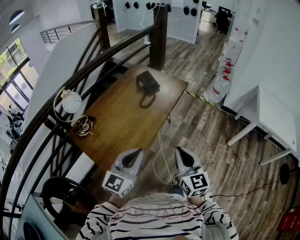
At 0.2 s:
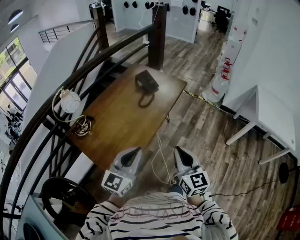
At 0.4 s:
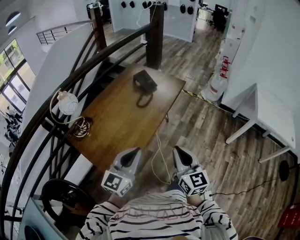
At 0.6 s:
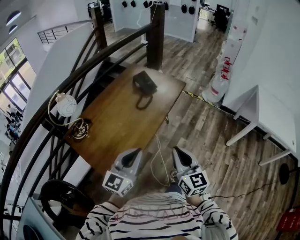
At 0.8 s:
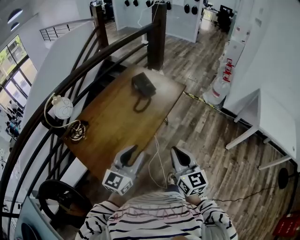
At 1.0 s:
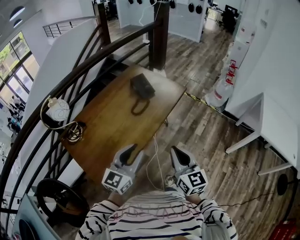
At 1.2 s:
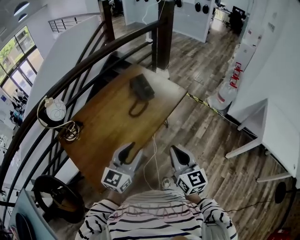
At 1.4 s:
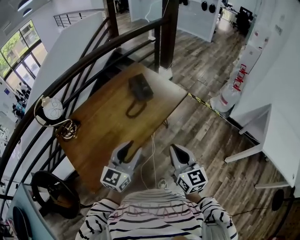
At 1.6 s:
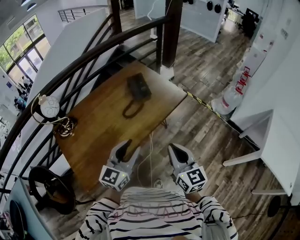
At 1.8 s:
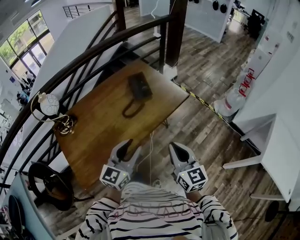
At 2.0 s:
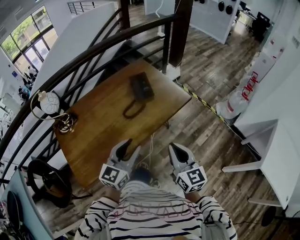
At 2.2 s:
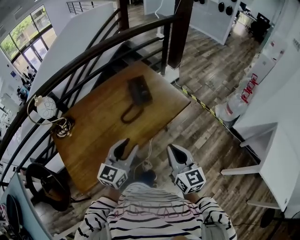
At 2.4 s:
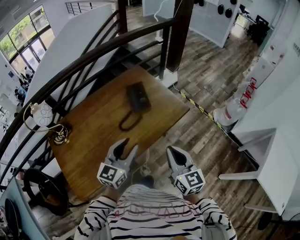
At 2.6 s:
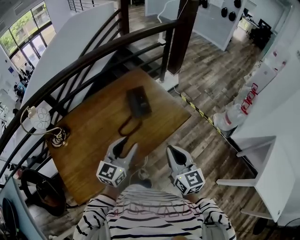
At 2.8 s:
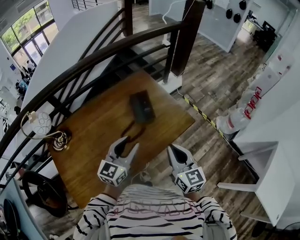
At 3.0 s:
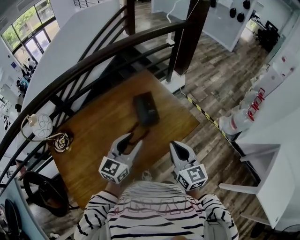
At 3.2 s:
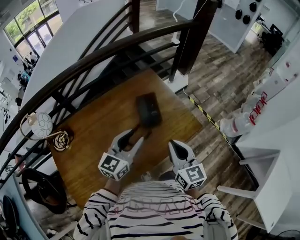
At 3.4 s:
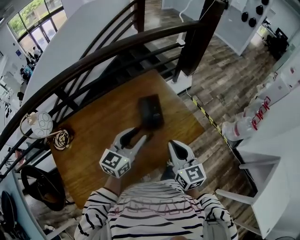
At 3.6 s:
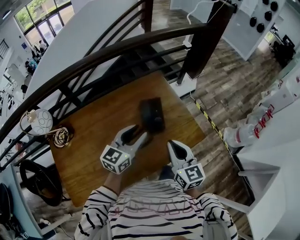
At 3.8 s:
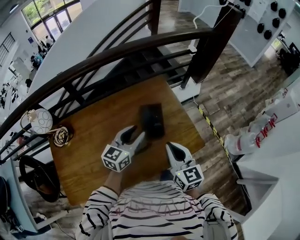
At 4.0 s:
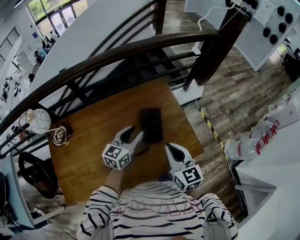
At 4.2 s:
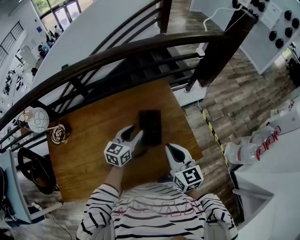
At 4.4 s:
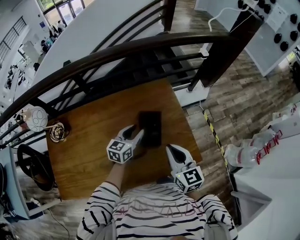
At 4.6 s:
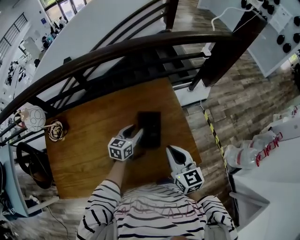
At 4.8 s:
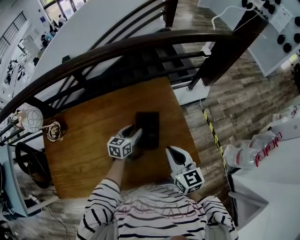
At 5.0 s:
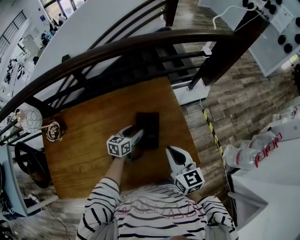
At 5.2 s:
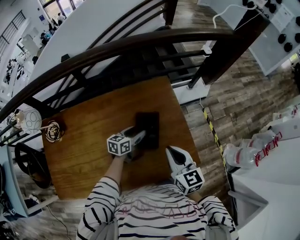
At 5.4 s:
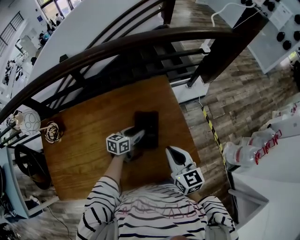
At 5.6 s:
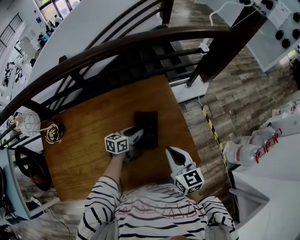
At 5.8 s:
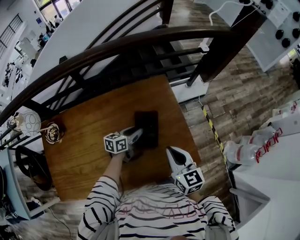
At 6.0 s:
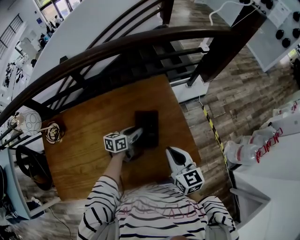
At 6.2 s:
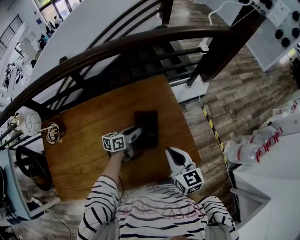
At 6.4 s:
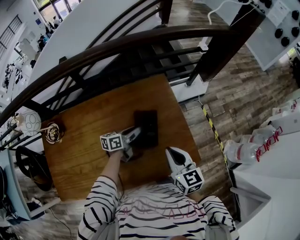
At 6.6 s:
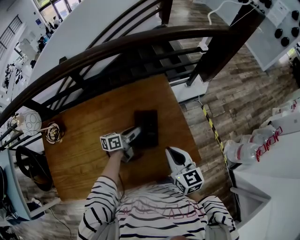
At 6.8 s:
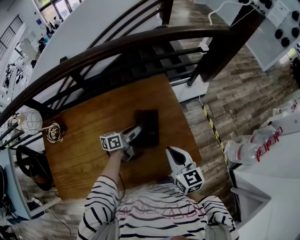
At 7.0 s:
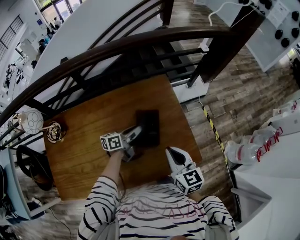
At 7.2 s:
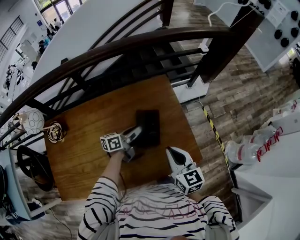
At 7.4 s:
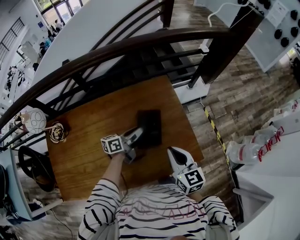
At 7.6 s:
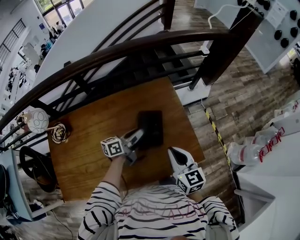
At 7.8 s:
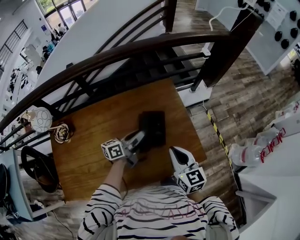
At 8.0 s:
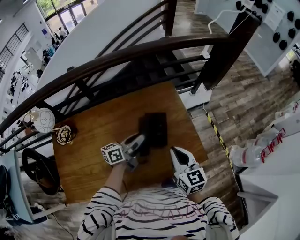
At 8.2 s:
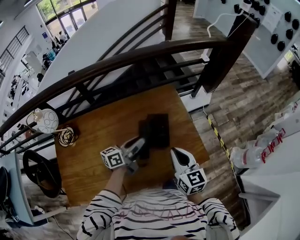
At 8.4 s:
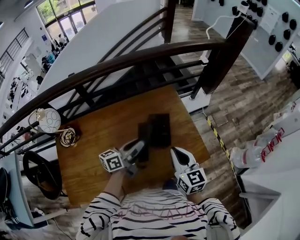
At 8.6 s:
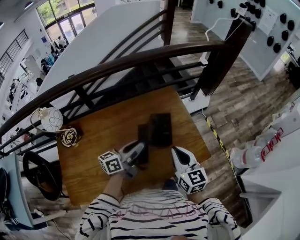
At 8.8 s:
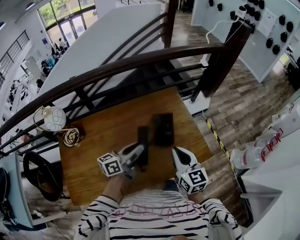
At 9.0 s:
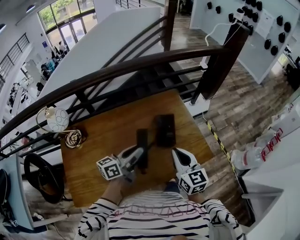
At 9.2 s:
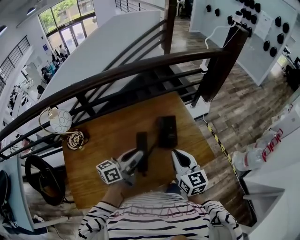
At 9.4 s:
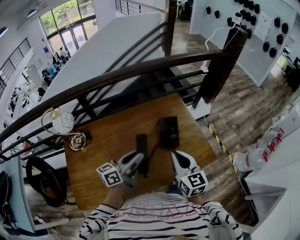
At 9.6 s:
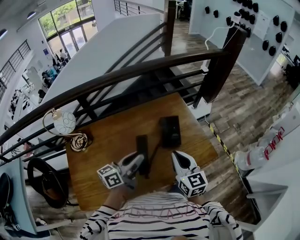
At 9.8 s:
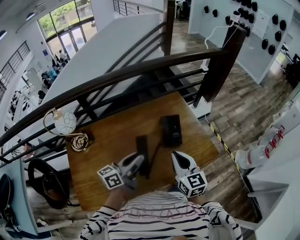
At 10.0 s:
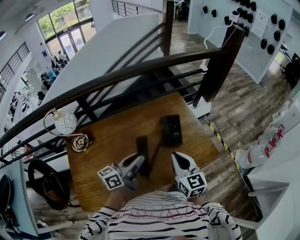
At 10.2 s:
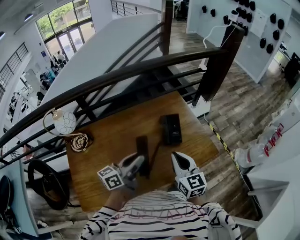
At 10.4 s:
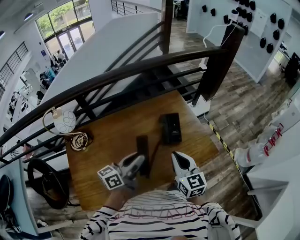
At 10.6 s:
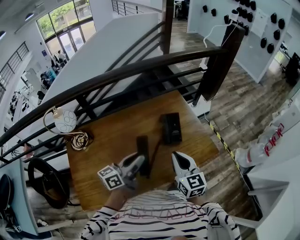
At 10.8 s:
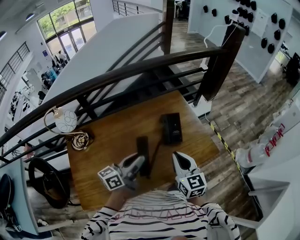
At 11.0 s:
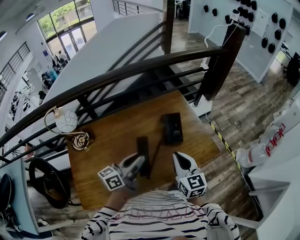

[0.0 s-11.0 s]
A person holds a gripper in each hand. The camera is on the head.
0.0 to 1.6 s: The grippers both shift forward and to the right by some 30 cm. The left gripper opens.
1.6 to 3.2 s: The two grippers go about 30 cm forward.
3.2 to 4.8 s: The right gripper goes about 20 cm forward, and turns by some 20 degrees. The left gripper is displaced forward and downward by about 30 cm, and rotates some 30 degrees.
4.8 to 6.2 s: The left gripper swivels approximately 20 degrees, and closes its fingers.
6.2 to 7.8 s: The left gripper shifts about 10 cm upward and backward.
7.8 to 9.4 s: The right gripper heads backward, to the left and upward, covering about 15 cm. Meanwhile the left gripper moves backward, upward and to the left, approximately 25 cm.
9.4 to 11.0 s: The grippers make only small movements.

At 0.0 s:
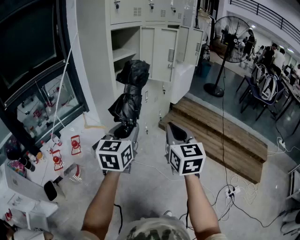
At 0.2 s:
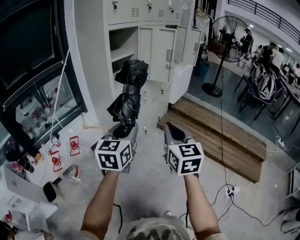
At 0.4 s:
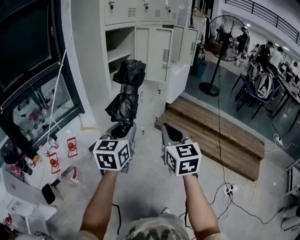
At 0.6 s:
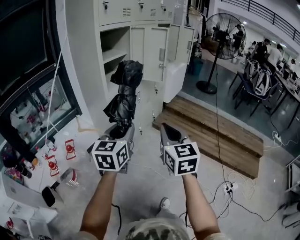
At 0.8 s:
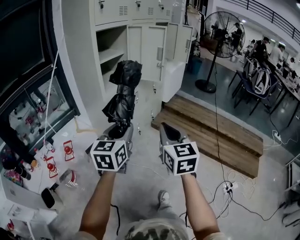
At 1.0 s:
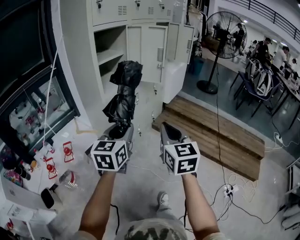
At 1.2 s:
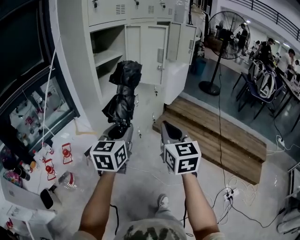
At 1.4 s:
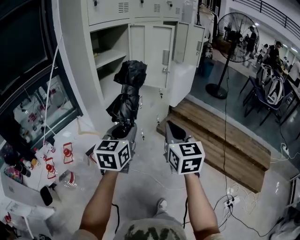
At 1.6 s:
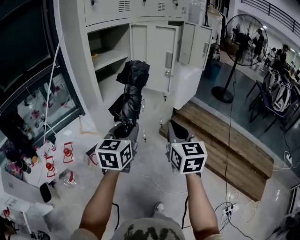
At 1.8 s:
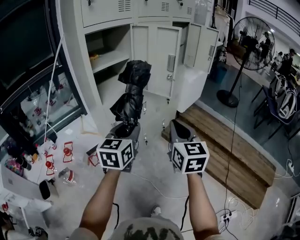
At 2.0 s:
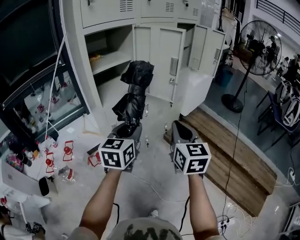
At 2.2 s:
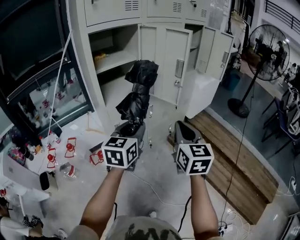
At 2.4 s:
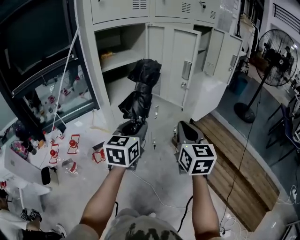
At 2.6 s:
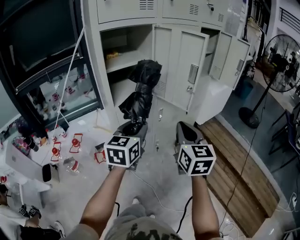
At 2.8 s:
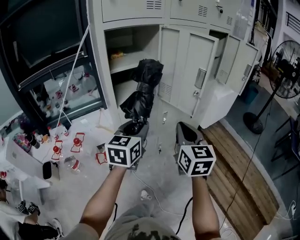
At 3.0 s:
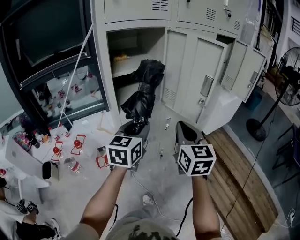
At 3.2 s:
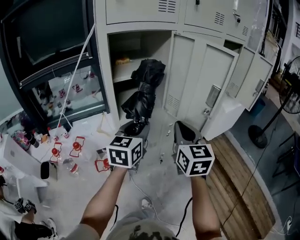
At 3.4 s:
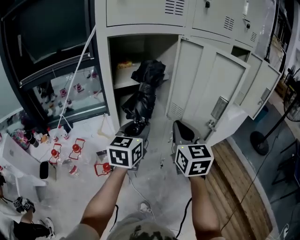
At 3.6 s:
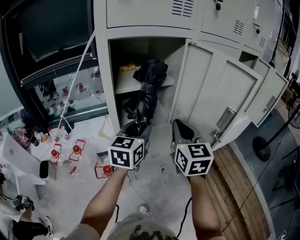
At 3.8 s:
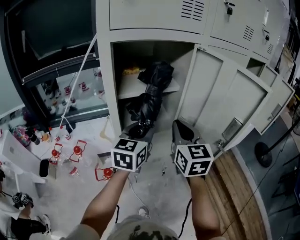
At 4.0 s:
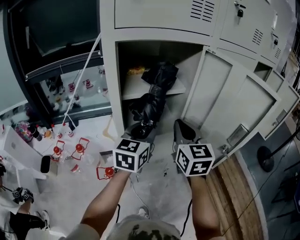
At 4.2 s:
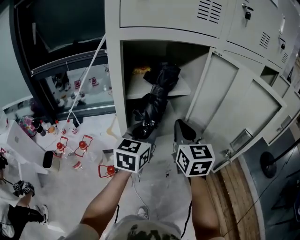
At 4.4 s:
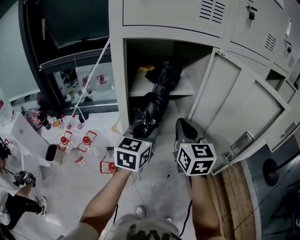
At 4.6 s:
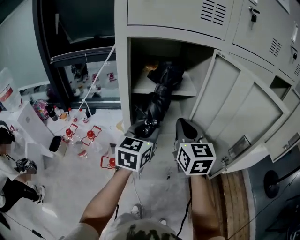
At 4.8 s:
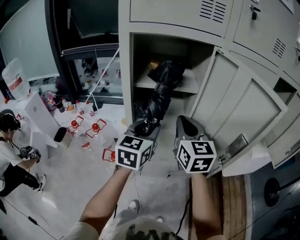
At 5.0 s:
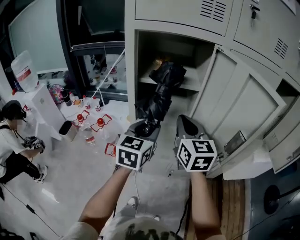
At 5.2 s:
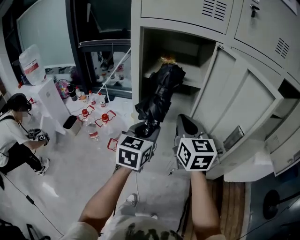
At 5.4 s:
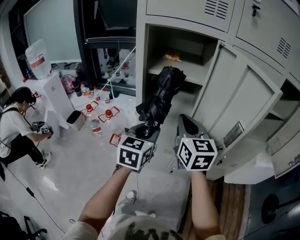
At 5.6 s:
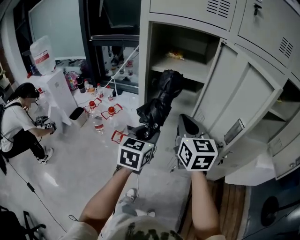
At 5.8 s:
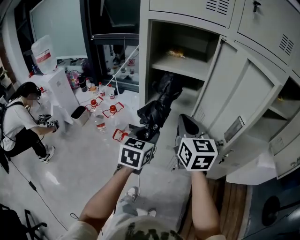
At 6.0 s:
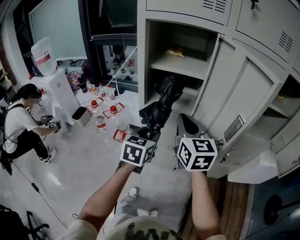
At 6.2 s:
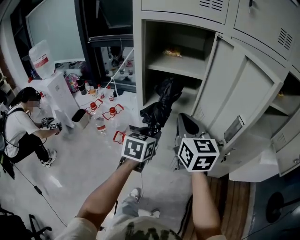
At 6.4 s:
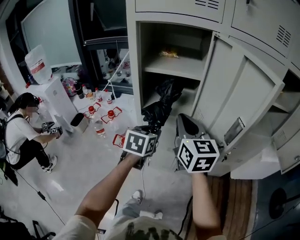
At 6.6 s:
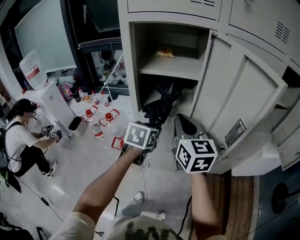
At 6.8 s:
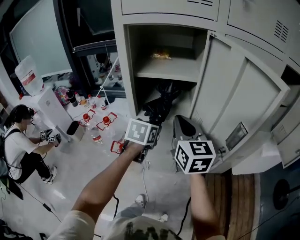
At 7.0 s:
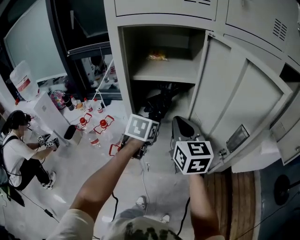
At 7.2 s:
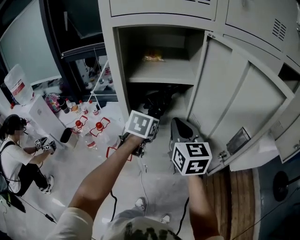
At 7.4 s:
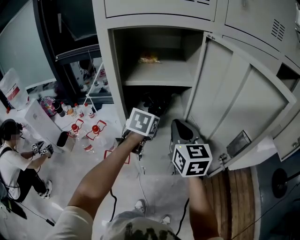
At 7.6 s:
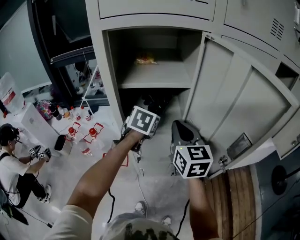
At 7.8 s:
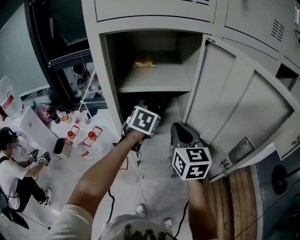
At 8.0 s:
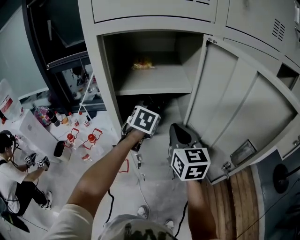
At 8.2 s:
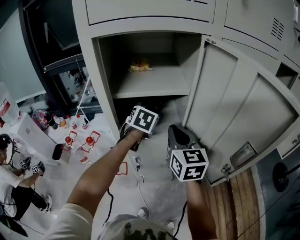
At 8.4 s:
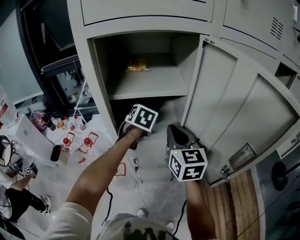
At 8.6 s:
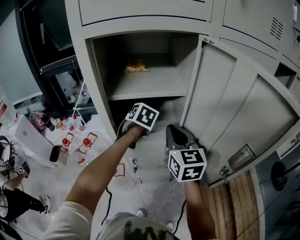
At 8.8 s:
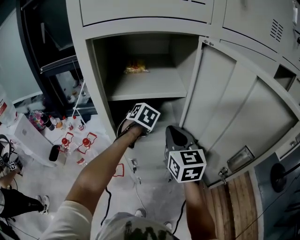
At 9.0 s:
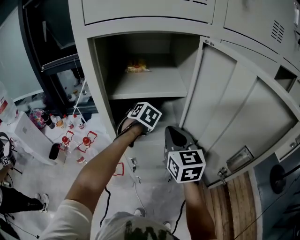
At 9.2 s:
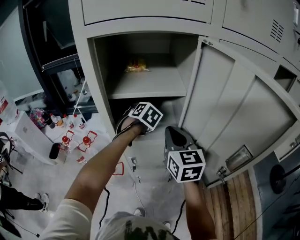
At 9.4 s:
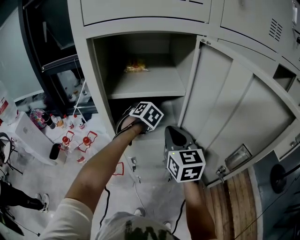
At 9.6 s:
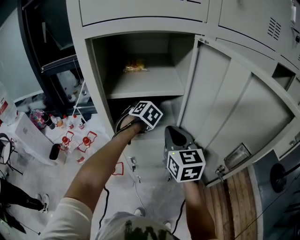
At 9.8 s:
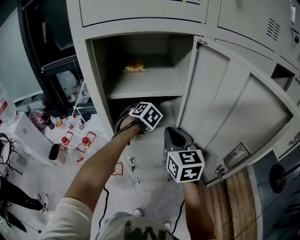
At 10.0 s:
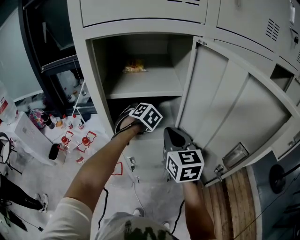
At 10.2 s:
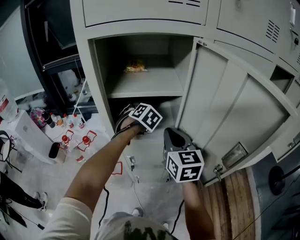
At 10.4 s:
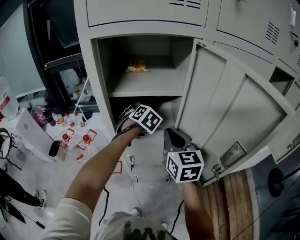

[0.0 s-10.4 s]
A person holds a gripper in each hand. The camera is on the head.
0.0 to 1.4 s: Both grippers travel together forward, some 15 cm.
1.4 to 3.0 s: The two grippers go some 25 cm forward. The right gripper changes its angle by approximately 20 degrees.
3.0 to 4.4 s: The right gripper travels forward and to the left by about 20 cm, while the left gripper shifts roughly 15 cm forward.
4.4 to 6.0 s: The left gripper travels backward and downward by roughly 15 cm, and changes its angle by about 30 degrees; the right gripper heads backward, covering about 10 cm, and swivels some 20 degrees.
6.0 to 7.4 s: The right gripper shifts some 5 cm forward, while the left gripper travels forward by roughly 15 cm, and turns by about 20 degrees.
7.4 to 9.0 s: The left gripper is displaced forward by some 10 cm, and changes its angle by about 30 degrees.
9.0 to 10.4 s: The left gripper opens.

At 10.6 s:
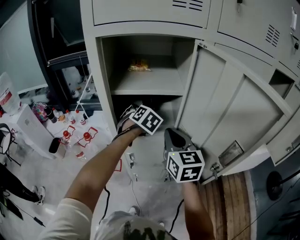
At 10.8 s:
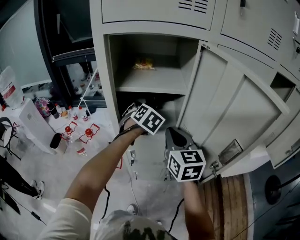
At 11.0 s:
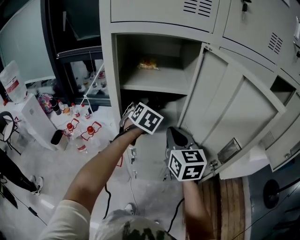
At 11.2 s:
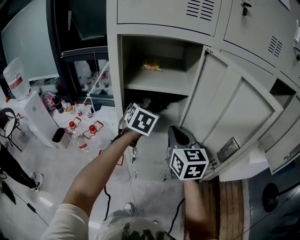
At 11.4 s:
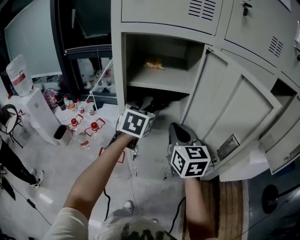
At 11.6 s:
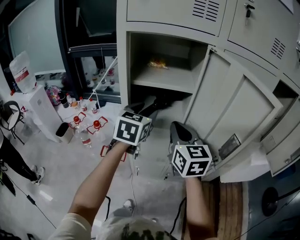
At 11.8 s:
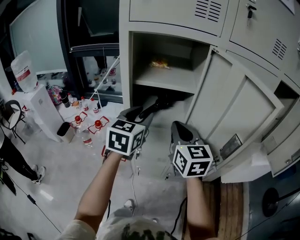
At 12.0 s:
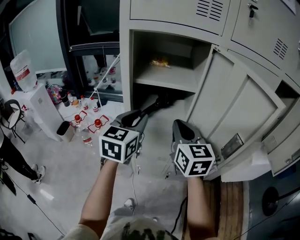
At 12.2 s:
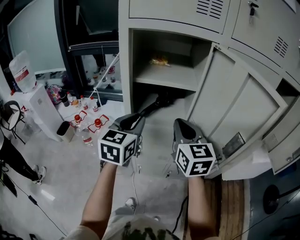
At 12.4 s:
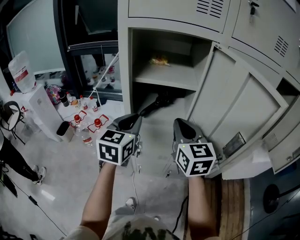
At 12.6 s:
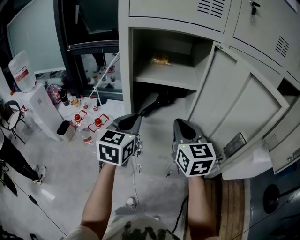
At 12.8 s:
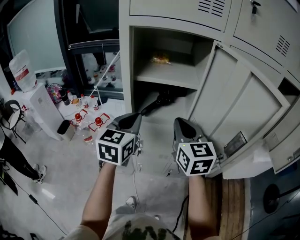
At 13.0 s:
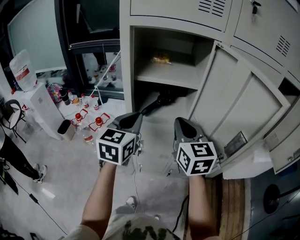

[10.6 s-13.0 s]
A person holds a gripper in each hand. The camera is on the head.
10.6 to 11.8 s: The left gripper travels backward and upward by roughly 20 cm, tilts its fingers approximately 30 degrees upward, and closes its fingers. Meanwhile the right gripper ends up some 5 cm from where it was.
11.8 to 13.0 s: The left gripper closes up.
